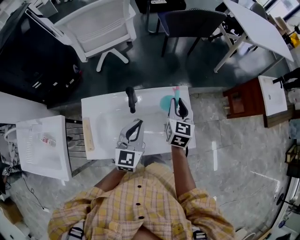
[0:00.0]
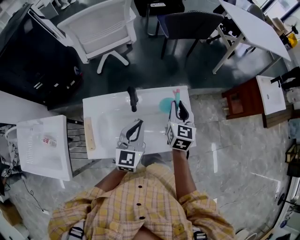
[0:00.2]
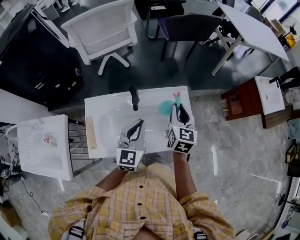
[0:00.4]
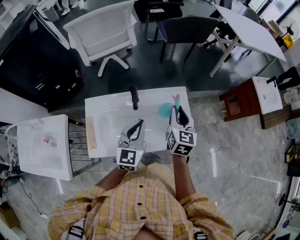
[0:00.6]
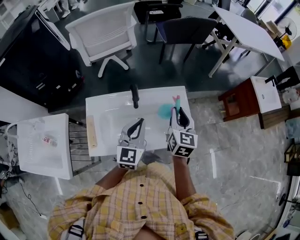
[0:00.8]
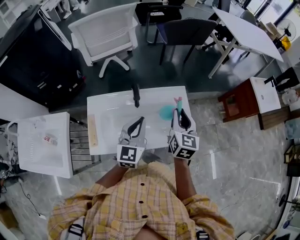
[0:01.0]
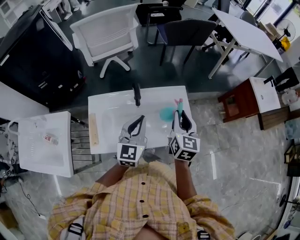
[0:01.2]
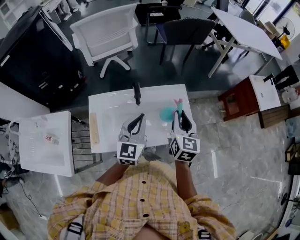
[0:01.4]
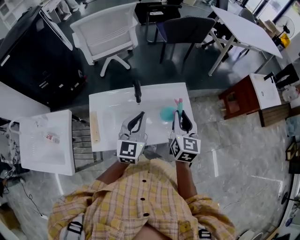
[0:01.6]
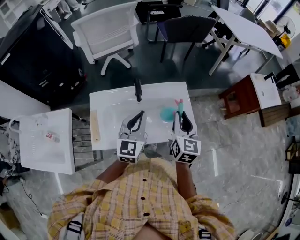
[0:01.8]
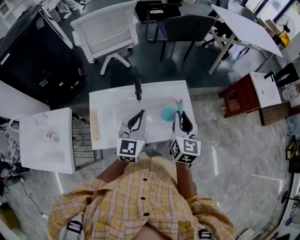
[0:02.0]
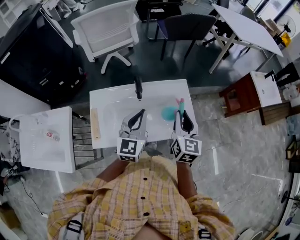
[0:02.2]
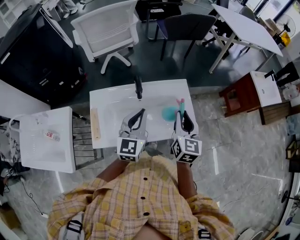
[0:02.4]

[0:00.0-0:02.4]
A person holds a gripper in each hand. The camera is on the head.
0.0 to 1.2 s: The right gripper goes approximately 15 cm backward and upward; the left gripper travels upward and backward by approximately 10 cm.
1.2 to 2.4 s: The grippers stay close to where they were, moving slightly.

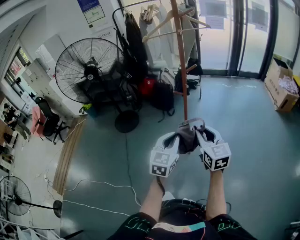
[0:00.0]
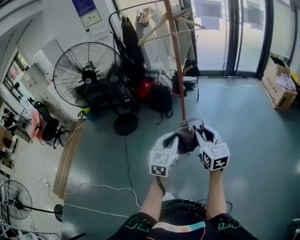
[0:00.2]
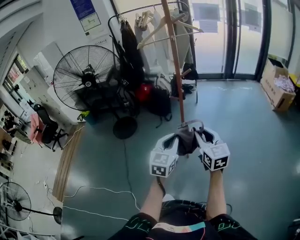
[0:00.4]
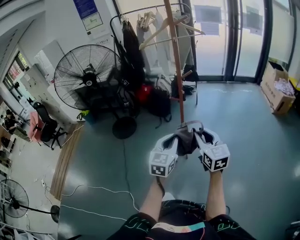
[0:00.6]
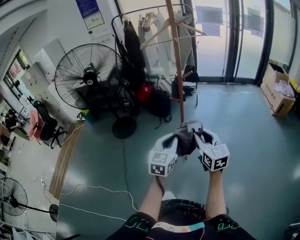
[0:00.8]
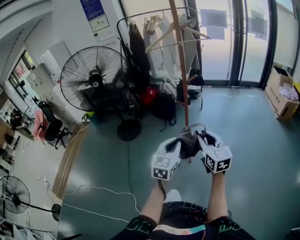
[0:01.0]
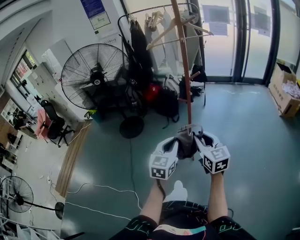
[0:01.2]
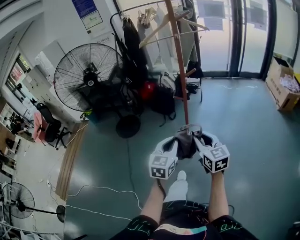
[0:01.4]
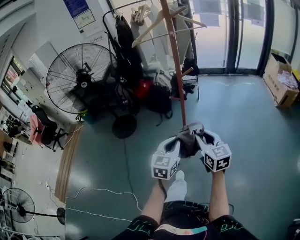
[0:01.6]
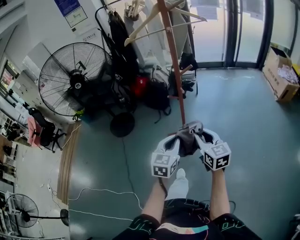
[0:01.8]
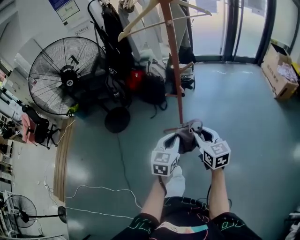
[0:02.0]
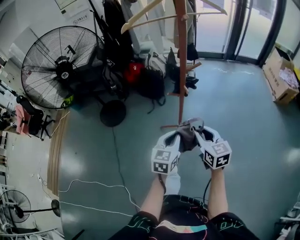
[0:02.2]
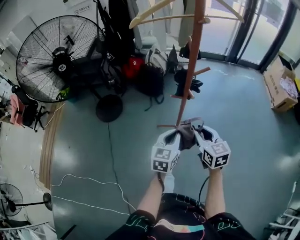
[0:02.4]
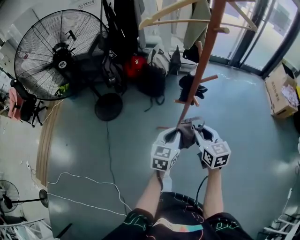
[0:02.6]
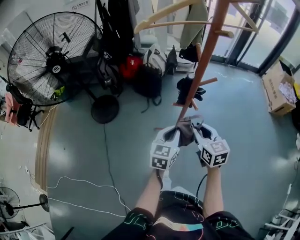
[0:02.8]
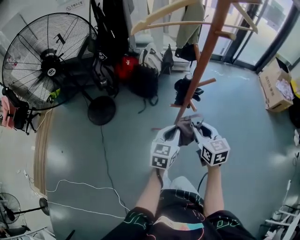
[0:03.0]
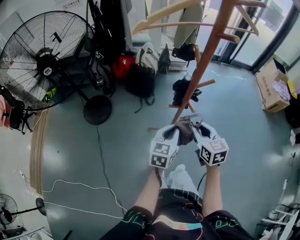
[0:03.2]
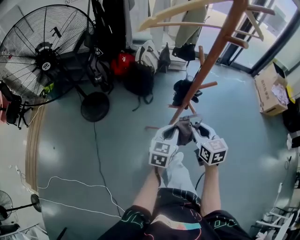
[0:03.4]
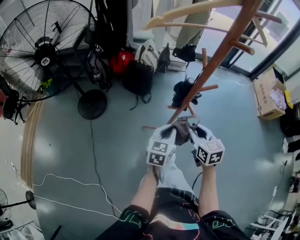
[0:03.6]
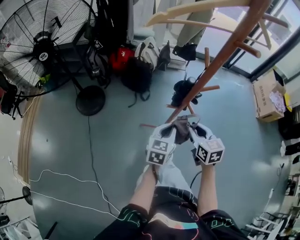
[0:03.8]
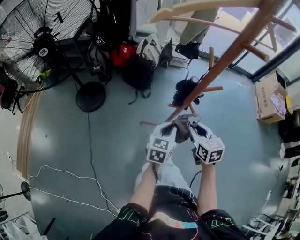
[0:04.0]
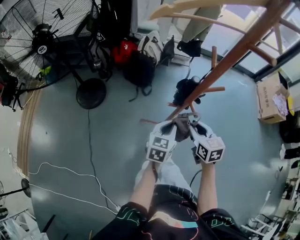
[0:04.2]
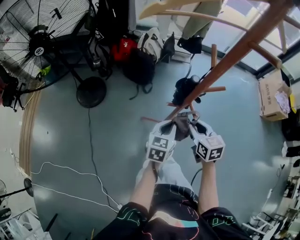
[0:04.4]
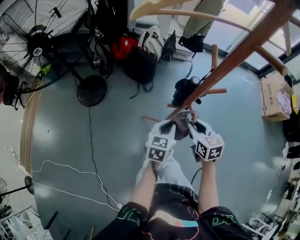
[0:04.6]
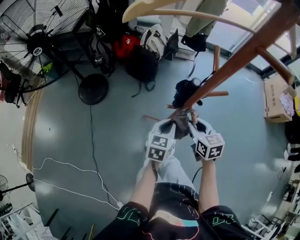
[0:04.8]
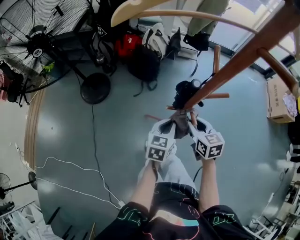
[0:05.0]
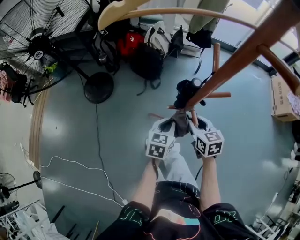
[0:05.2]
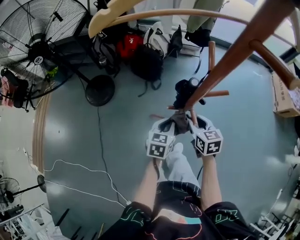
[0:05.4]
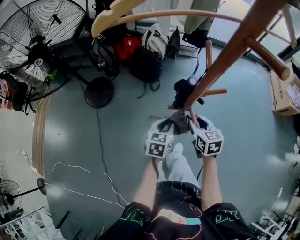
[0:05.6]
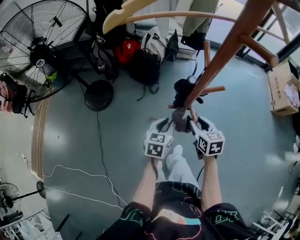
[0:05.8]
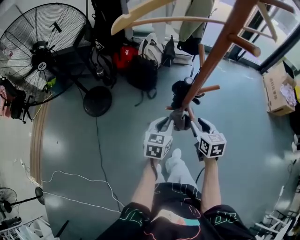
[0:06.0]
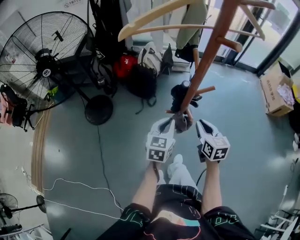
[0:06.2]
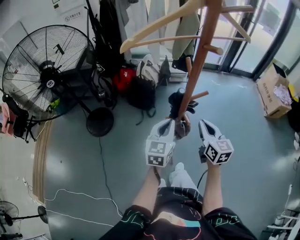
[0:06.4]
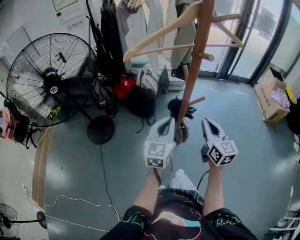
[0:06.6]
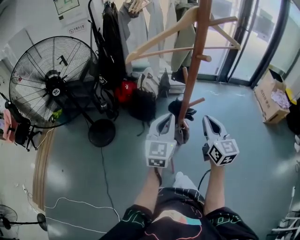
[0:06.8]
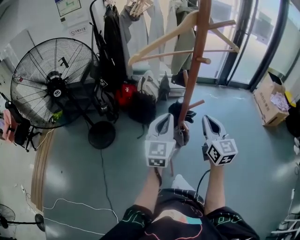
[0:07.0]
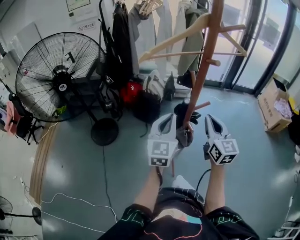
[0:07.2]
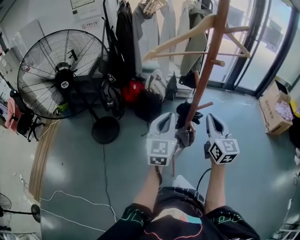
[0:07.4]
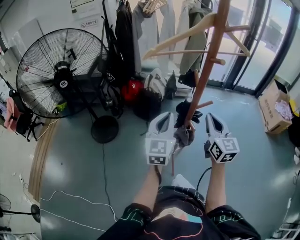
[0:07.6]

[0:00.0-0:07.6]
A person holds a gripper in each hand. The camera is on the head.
0.0 to 1.6 s: Both grippers move forward, approximately 5 cm.
1.6 to 3.0 s: Both grippers travel together forward, approximately 25 cm.
3.0 to 4.6 s: The grippers both shift forward and downward by about 10 cm.
4.6 to 6.0 s: There are only small adjustments of the grippers.
6.0 to 7.6 s: Both grippers travel together upward, some 20 cm. The left gripper swivels roughly 30 degrees. The right gripper tilts its fingers about 30 degrees upward, and closes up.

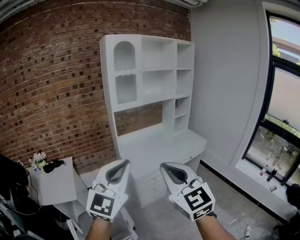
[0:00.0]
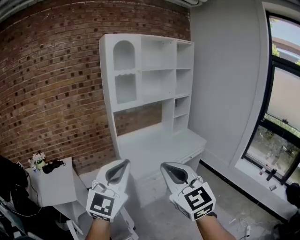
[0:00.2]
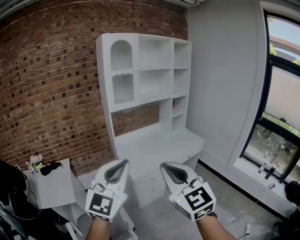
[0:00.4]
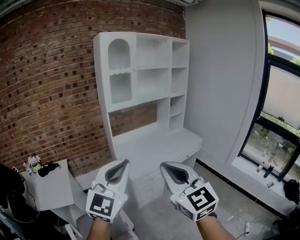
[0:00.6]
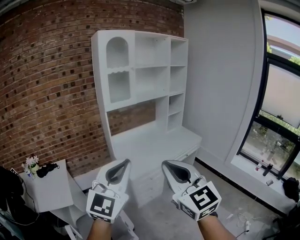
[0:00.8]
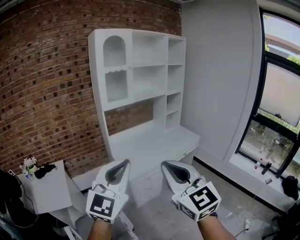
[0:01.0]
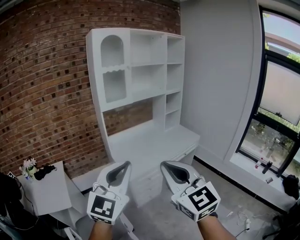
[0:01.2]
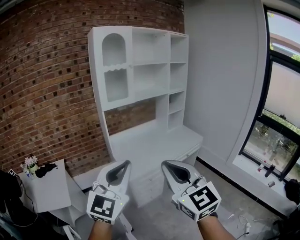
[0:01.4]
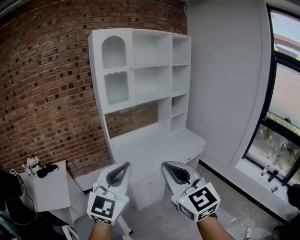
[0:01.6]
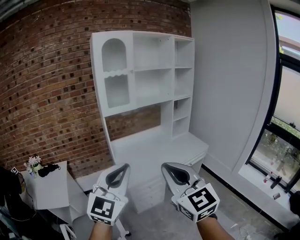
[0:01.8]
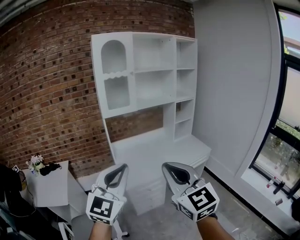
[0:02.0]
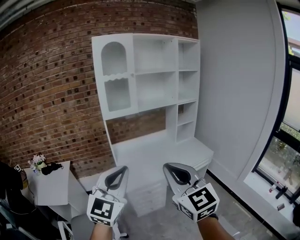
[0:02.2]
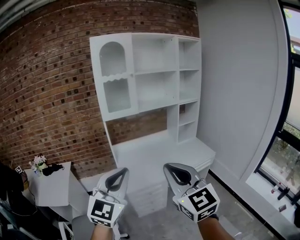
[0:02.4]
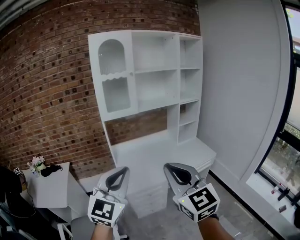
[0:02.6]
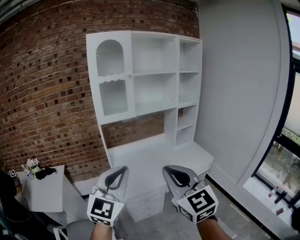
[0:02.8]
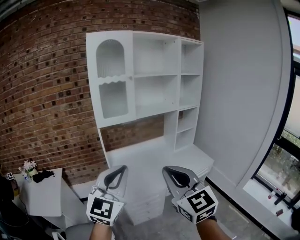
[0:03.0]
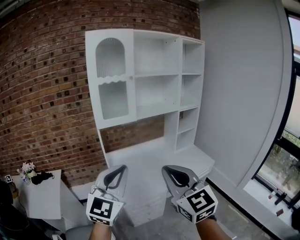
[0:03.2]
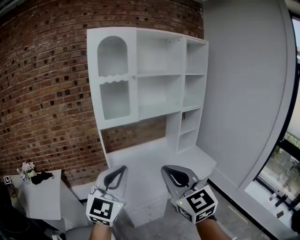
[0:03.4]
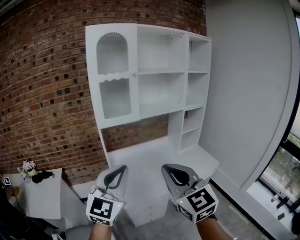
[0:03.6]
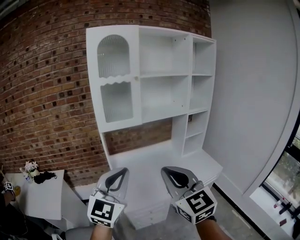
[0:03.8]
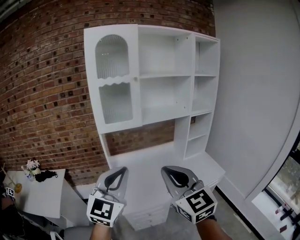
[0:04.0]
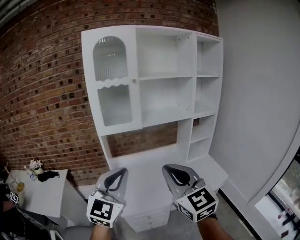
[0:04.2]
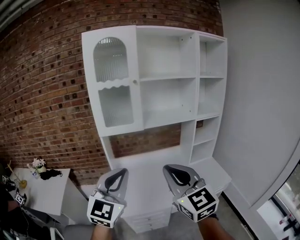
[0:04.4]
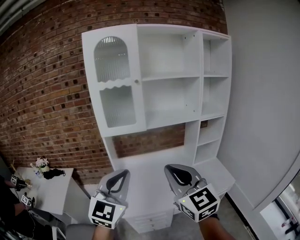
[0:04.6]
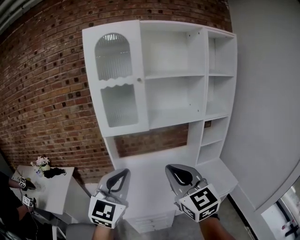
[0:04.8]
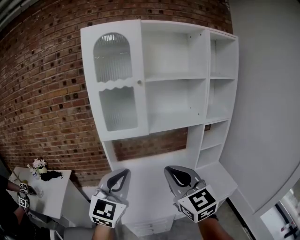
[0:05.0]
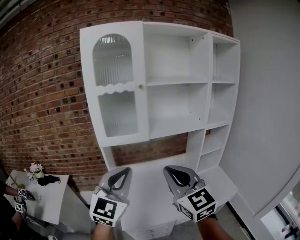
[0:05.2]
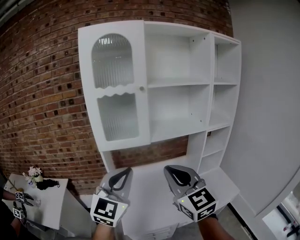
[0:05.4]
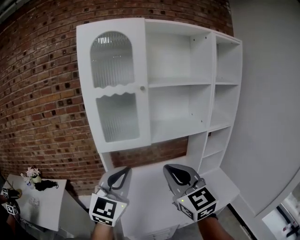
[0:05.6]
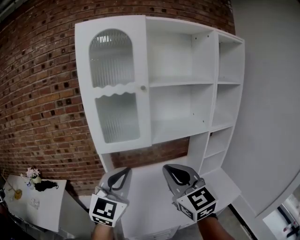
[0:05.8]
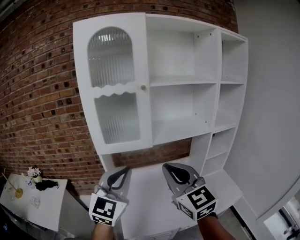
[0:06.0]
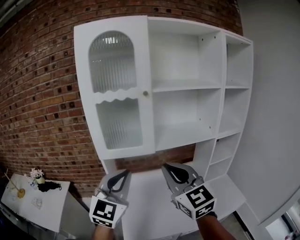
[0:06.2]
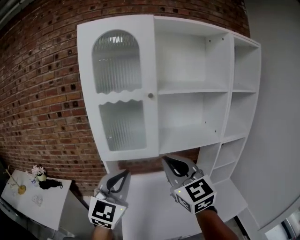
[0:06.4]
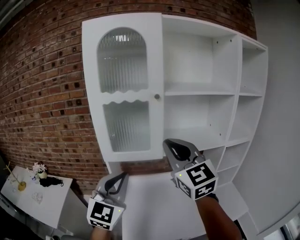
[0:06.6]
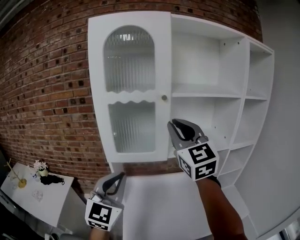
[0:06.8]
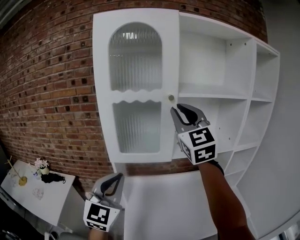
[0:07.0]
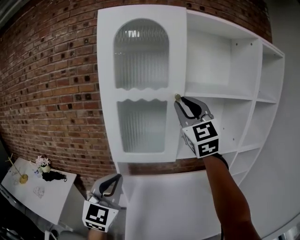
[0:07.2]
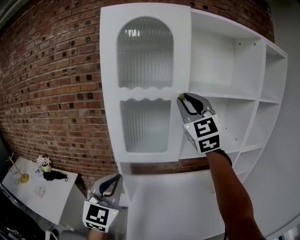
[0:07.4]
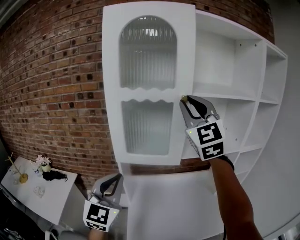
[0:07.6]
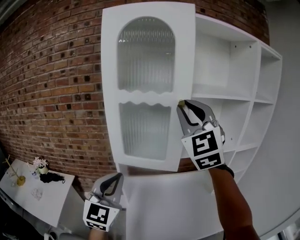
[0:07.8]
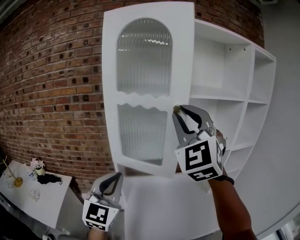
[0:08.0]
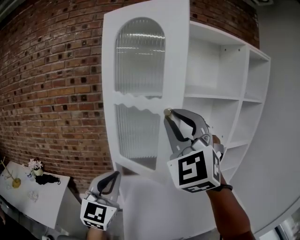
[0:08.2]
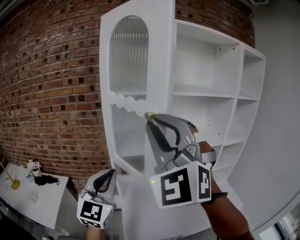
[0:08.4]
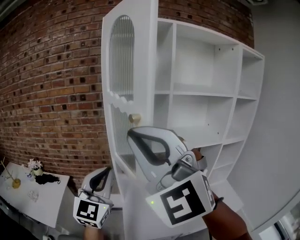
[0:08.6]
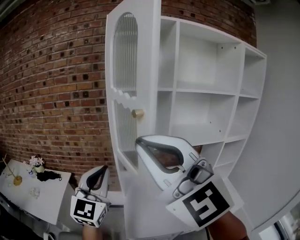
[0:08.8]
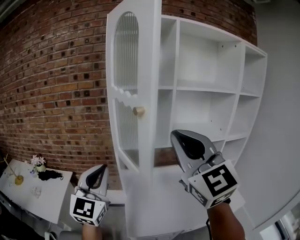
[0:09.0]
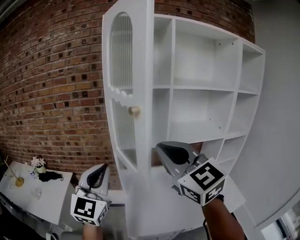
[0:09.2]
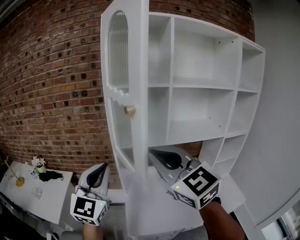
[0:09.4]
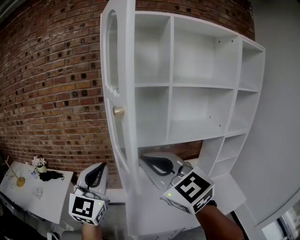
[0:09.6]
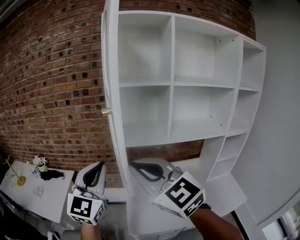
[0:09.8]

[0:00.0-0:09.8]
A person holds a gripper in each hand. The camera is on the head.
0.0 to 1.4 s: The grippers both shift forward by about 10 cm.
1.4 to 2.8 s: Both grippers move forward and to the right, some 20 cm.
2.8 to 4.2 s: Both grippers move forward, about 20 cm.
4.2 to 5.6 s: Both grippers travel together forward, about 20 cm.
5.6 to 7.0 s: The right gripper moves forward and upward, approximately 30 cm. Meanwhile the left gripper heads forward and to the left, covering roughly 15 cm.
7.0 to 8.4 s: The right gripper is displaced backward and to the left by some 20 cm, and rotates approximately 30 degrees. Meanwhile the left gripper moves roughly 5 cm.
8.4 to 9.8 s: The left gripper changes place by roughly 5 cm. Meanwhile the right gripper travels downward by about 15 cm, and rolls clockwise, seen from behind, by about 40 degrees.

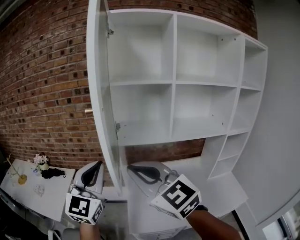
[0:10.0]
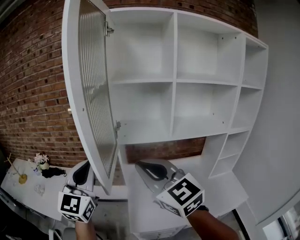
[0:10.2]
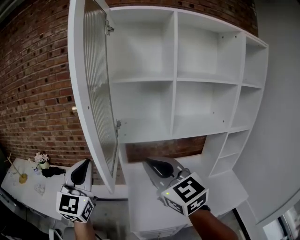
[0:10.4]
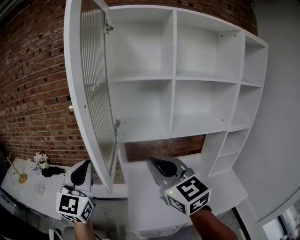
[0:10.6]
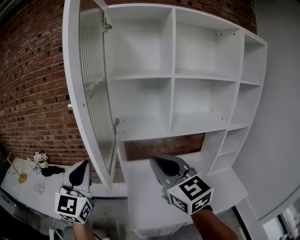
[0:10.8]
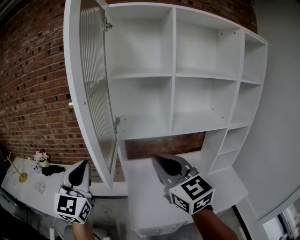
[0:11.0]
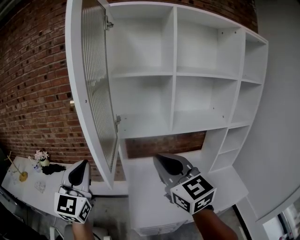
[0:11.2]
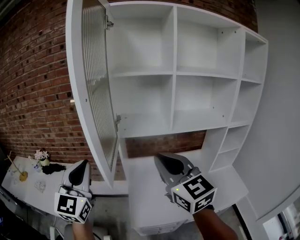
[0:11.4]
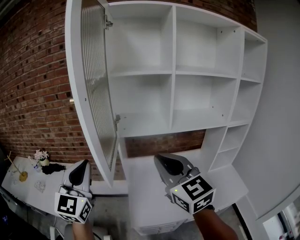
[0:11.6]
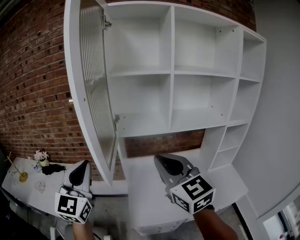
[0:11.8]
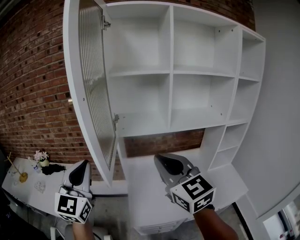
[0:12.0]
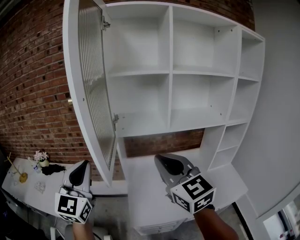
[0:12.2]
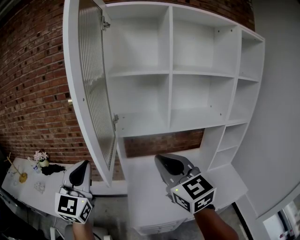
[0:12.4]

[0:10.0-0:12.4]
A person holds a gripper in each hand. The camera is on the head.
10.0 to 11.2 s: The right gripper goes some 10 cm to the right; the left gripper heads to the left, covering approximately 5 cm.
11.2 to 12.4 s: There are only small adjustments of the grippers.

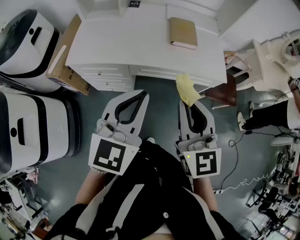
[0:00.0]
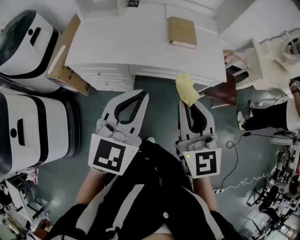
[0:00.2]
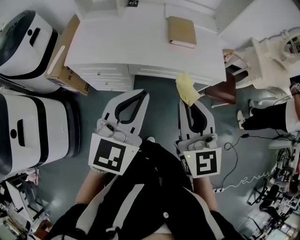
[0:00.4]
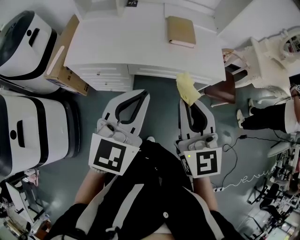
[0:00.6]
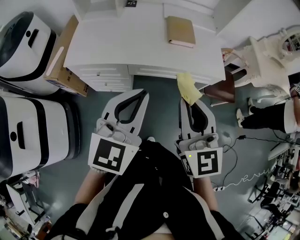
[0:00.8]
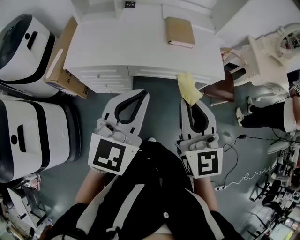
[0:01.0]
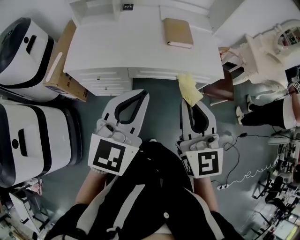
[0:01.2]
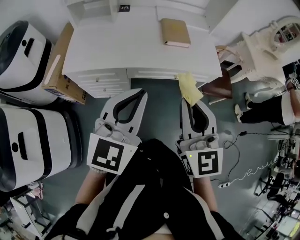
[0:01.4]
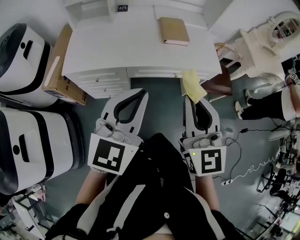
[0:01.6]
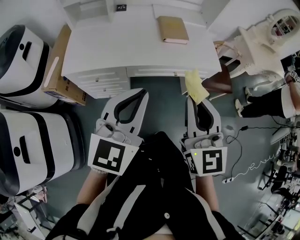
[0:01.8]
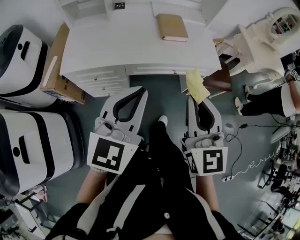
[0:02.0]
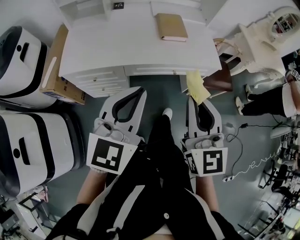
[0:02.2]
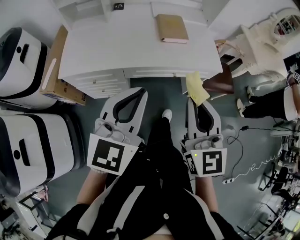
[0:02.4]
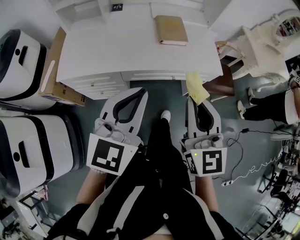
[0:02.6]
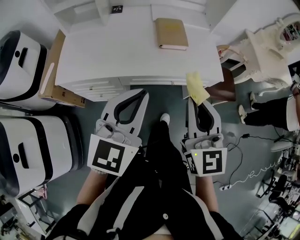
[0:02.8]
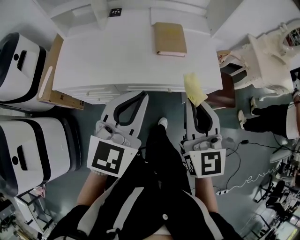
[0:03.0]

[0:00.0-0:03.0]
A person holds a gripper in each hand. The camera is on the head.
0.0 to 1.6 s: The grippers move only a little.
1.6 to 3.0 s: Both grippers travel together forward and to the right, about 15 cm.
